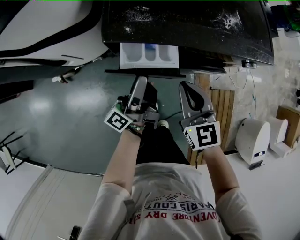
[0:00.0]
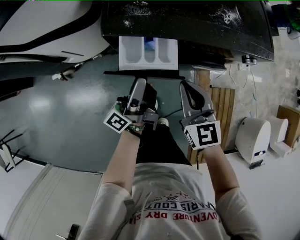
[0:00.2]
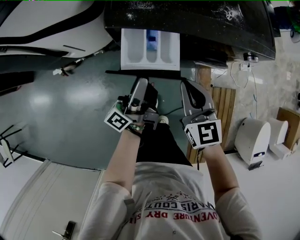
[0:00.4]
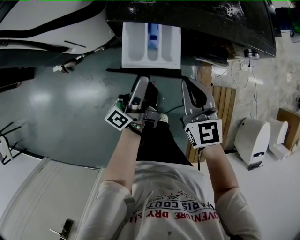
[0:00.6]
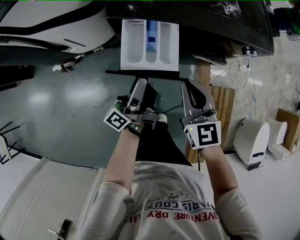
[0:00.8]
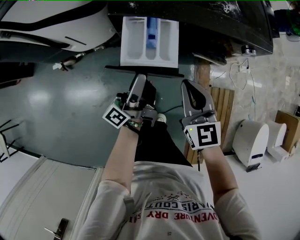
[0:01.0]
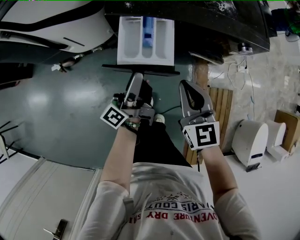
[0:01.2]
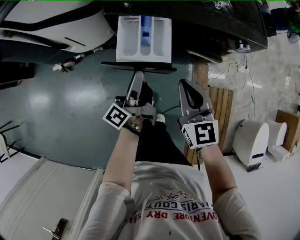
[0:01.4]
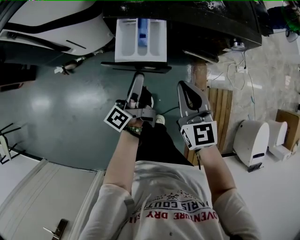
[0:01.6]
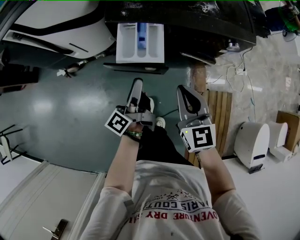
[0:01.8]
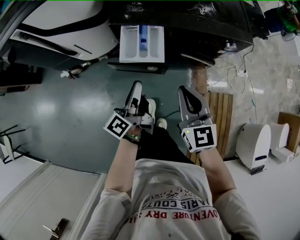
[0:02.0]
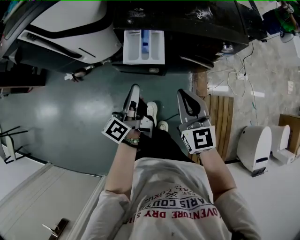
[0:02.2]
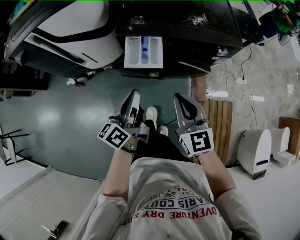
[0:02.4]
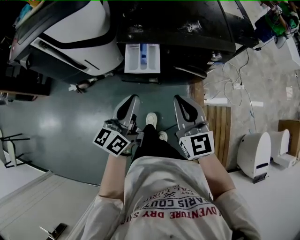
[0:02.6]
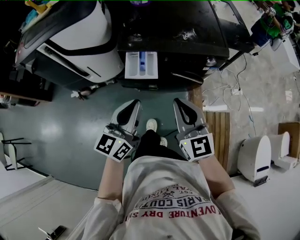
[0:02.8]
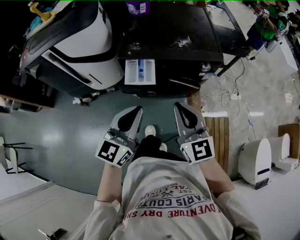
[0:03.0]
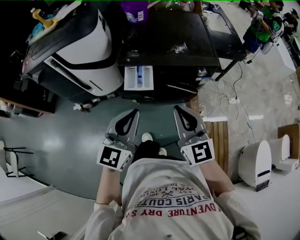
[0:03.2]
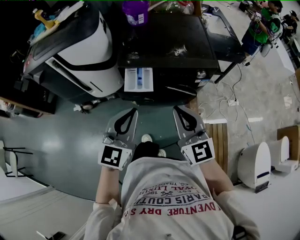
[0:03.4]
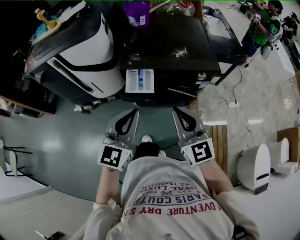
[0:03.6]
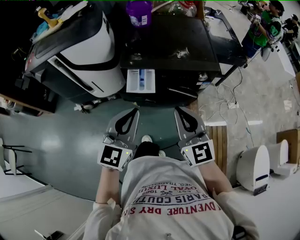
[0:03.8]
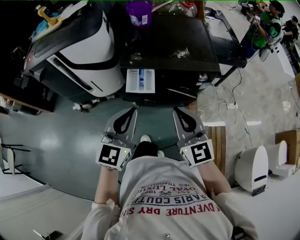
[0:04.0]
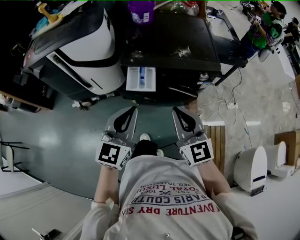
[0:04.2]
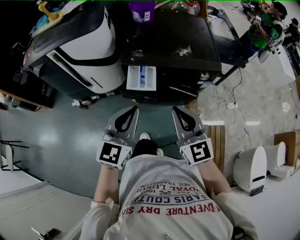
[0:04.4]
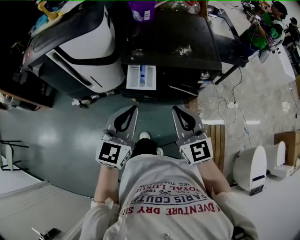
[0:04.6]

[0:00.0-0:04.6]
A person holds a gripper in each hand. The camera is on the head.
0:00.0 to 0:01.6: The grippers both shift backward by some 10 cm.
0:01.6 to 0:03.0: Both grippers travel together upward and backward, roughly 25 cm. The left gripper rotates around the line of its fingers by about 70 degrees, clockwise from behind, and closes its fingers.
0:03.0 to 0:04.6: The grippers stay close to where they were, moving slightly.

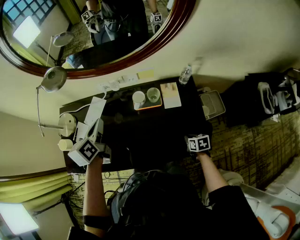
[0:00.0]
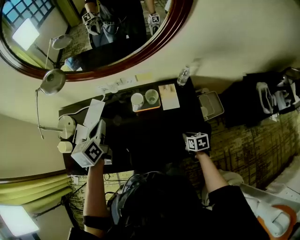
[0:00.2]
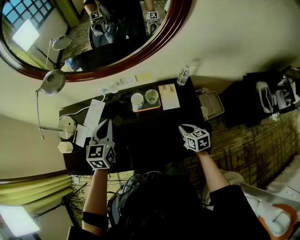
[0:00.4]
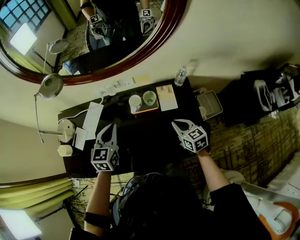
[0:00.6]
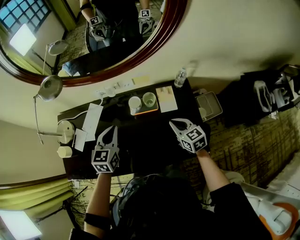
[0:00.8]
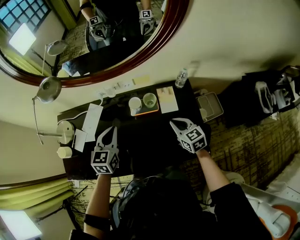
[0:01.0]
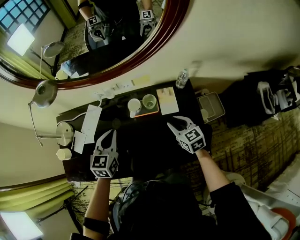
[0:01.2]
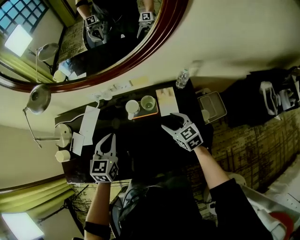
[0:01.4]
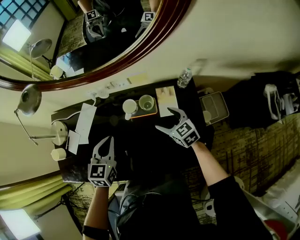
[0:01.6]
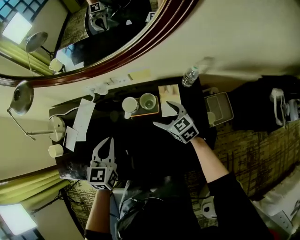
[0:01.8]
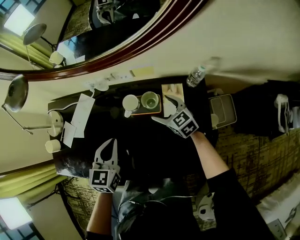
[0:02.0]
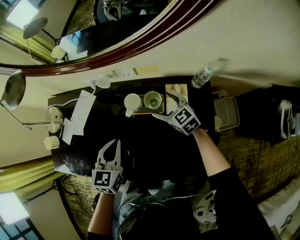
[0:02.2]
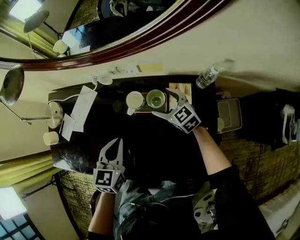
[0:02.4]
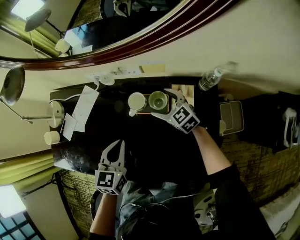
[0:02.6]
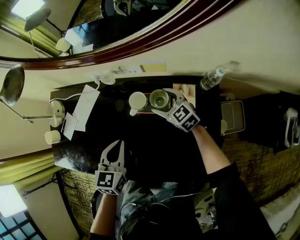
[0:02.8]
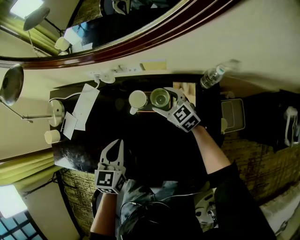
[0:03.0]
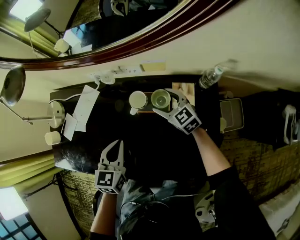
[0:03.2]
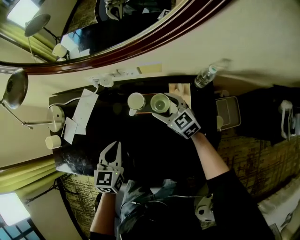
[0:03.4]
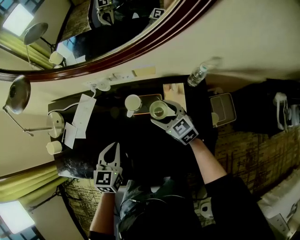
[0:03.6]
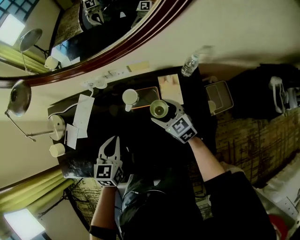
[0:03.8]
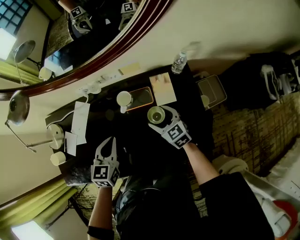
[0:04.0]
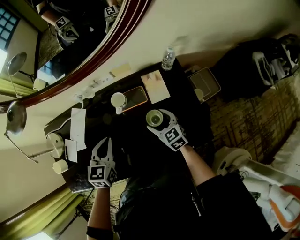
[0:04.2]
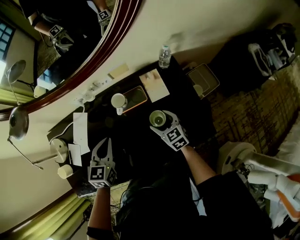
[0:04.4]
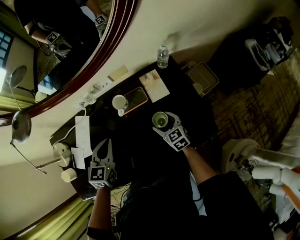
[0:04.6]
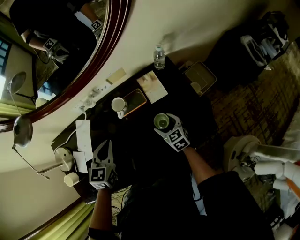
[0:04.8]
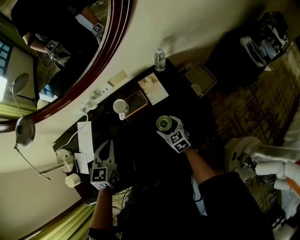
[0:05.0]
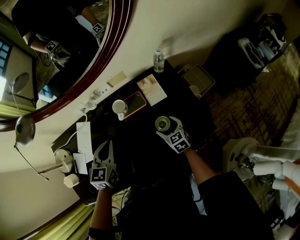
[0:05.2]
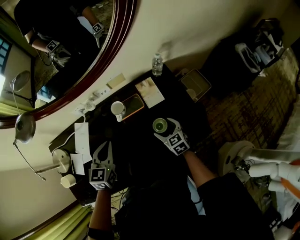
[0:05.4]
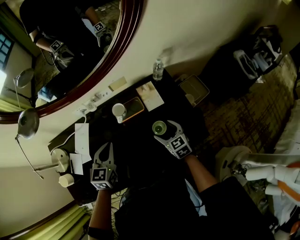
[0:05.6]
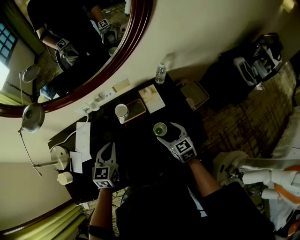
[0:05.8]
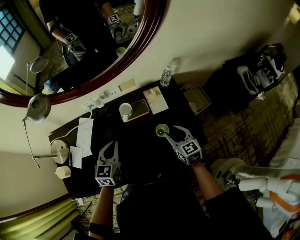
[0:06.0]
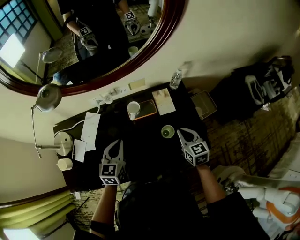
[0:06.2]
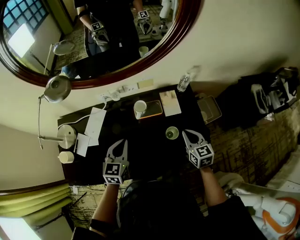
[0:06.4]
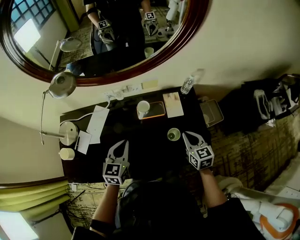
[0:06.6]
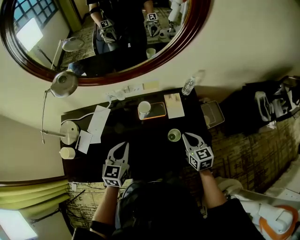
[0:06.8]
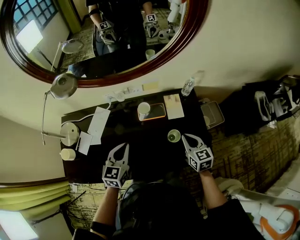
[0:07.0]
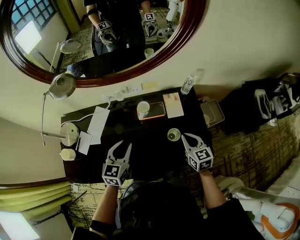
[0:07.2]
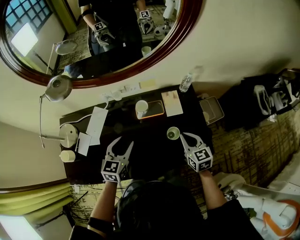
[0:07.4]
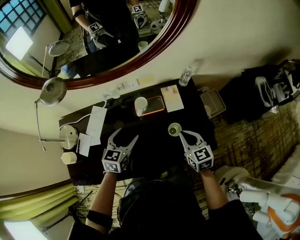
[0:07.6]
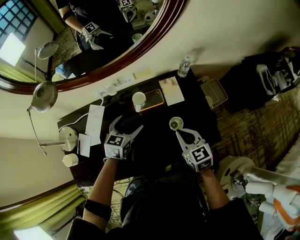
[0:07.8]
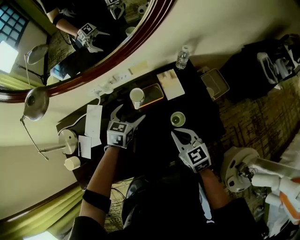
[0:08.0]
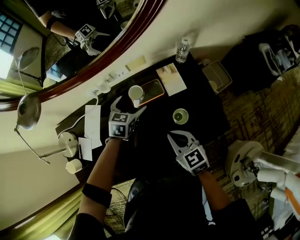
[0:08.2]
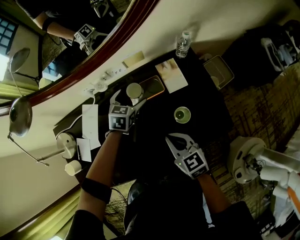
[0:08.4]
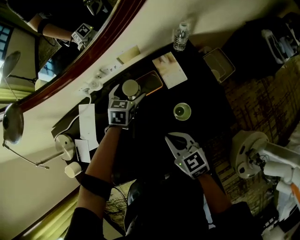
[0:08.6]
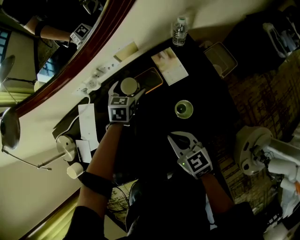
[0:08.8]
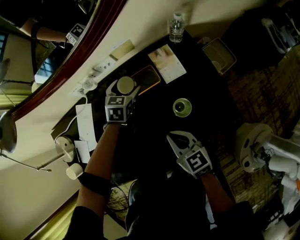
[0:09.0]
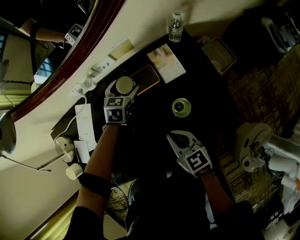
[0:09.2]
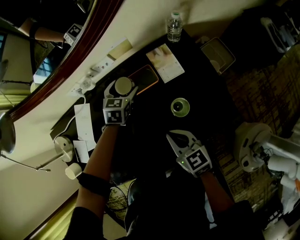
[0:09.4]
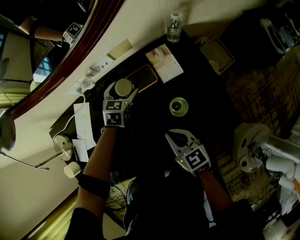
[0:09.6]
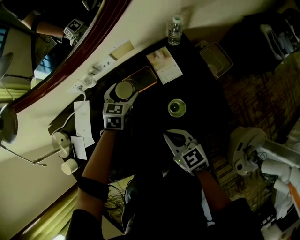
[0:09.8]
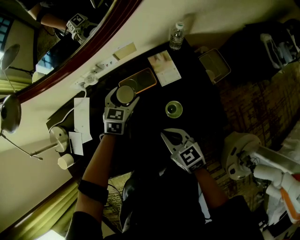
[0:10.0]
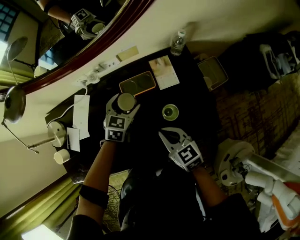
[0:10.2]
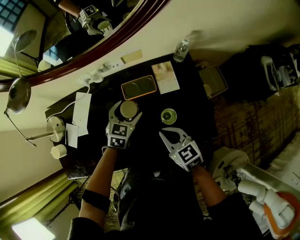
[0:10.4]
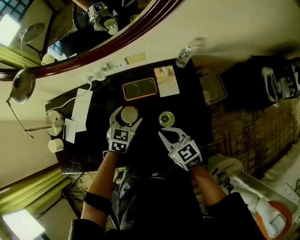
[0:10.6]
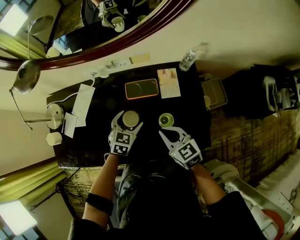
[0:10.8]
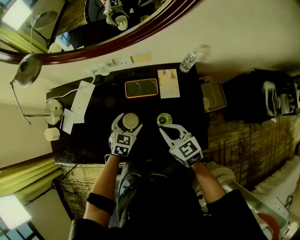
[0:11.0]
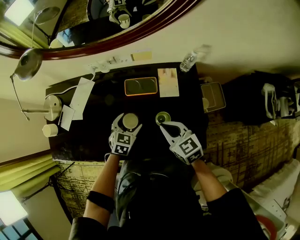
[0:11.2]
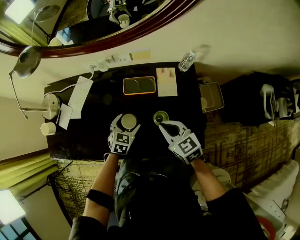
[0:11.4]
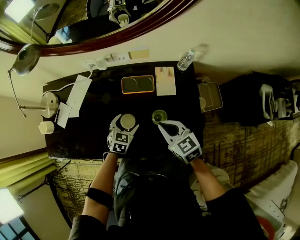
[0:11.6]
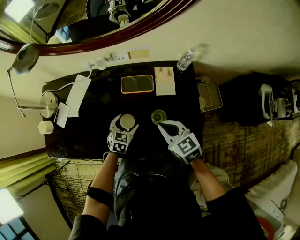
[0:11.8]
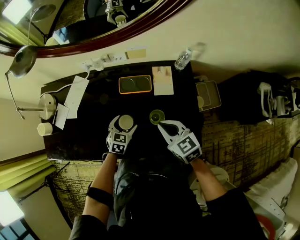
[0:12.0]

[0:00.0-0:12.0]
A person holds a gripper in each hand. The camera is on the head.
0:00.0 to 0:01.6: The right gripper moves forward and upward, about 20 cm, rotates some 50 degrees, and opens up. Meanwhile the left gripper is displaced to the right and downward by approximately 15 cm, and rotates about 40 degrees.
0:01.6 to 0:03.0: The right gripper is displaced forward and downward by approximately 15 cm; the left gripper travels downward by some 10 cm.
0:03.0 to 0:04.4: The right gripper ends up about 20 cm from where it was, and turns by roughly 40 degrees. Meanwhile the left gripper ends up some 5 cm from where it was, and swivels some 20 degrees.
0:04.4 to 0:06.0: The right gripper goes about 10 cm upward and backward, and closes.
0:06.0 to 0:07.6: The left gripper opens up. The right gripper closes.
0:07.6 to 0:09.0: The left gripper goes approximately 25 cm forward and downward, and turns by roughly 20 degrees. Meanwhile the right gripper heads to the left and downward, covering roughly 15 cm.
0:09.0 to 0:10.4: The right gripper travels upward by some 5 cm. The left gripper goes some 15 cm backward and upward.
0:10.4 to 0:12.0: The right gripper shifts approximately 5 cm to the right; the left gripper shifts about 15 cm downward and backward.

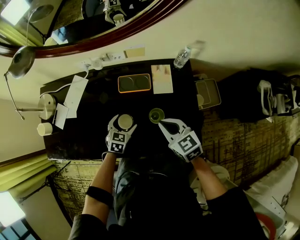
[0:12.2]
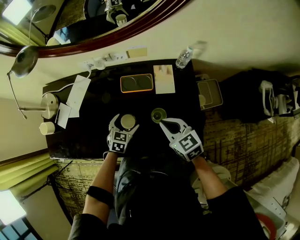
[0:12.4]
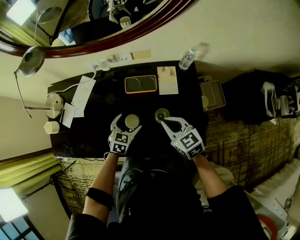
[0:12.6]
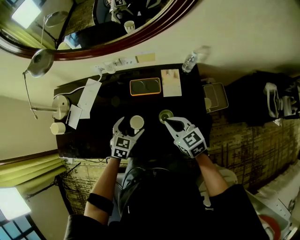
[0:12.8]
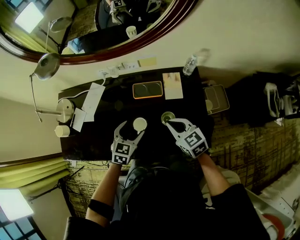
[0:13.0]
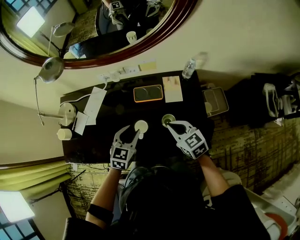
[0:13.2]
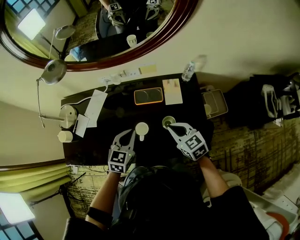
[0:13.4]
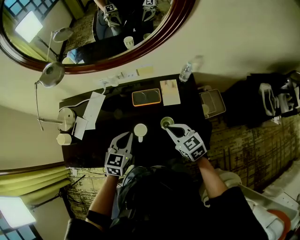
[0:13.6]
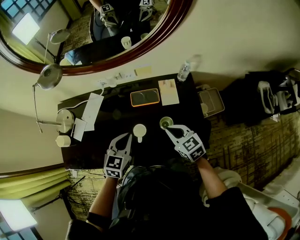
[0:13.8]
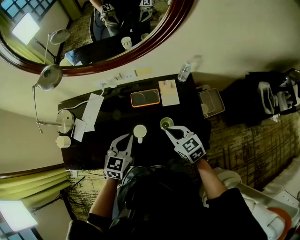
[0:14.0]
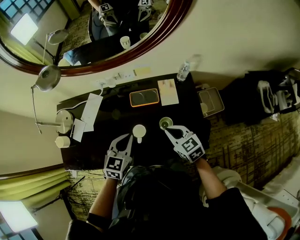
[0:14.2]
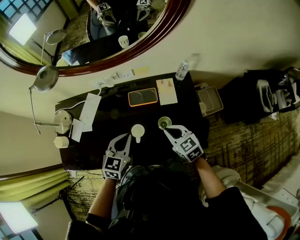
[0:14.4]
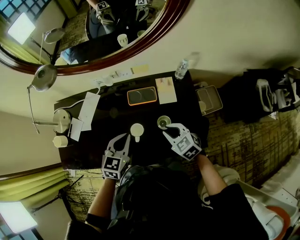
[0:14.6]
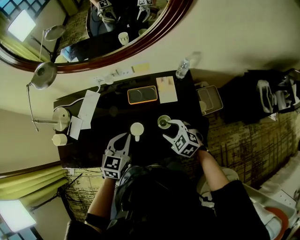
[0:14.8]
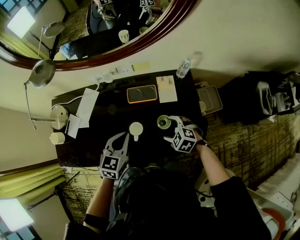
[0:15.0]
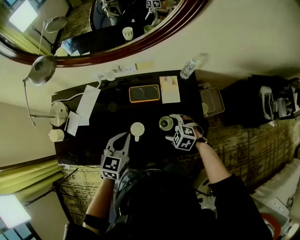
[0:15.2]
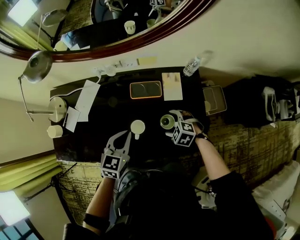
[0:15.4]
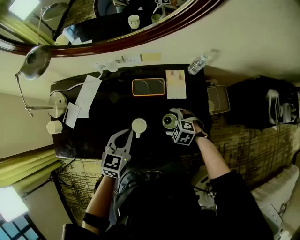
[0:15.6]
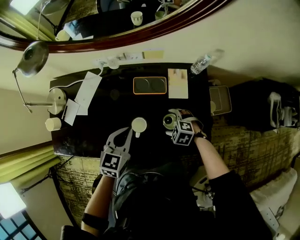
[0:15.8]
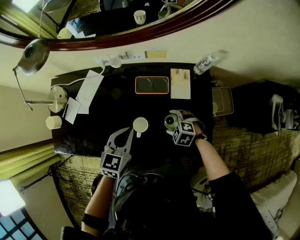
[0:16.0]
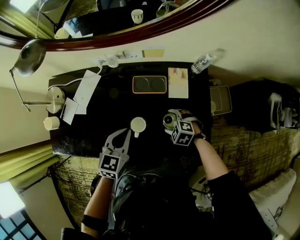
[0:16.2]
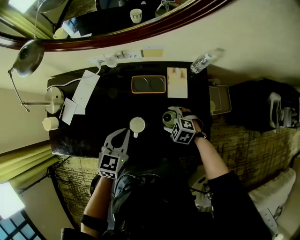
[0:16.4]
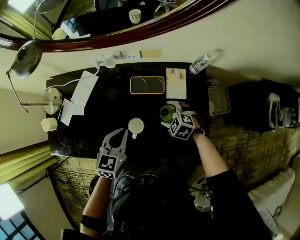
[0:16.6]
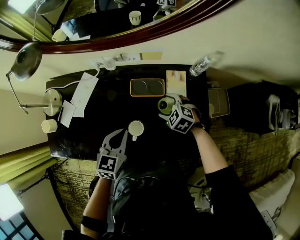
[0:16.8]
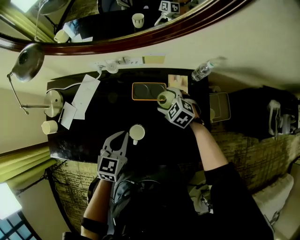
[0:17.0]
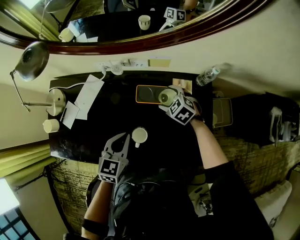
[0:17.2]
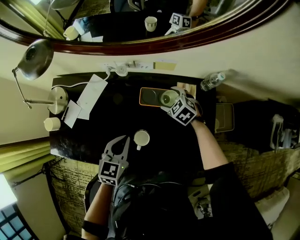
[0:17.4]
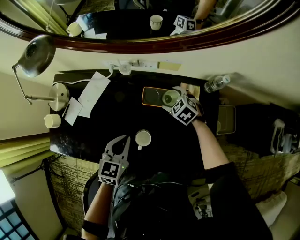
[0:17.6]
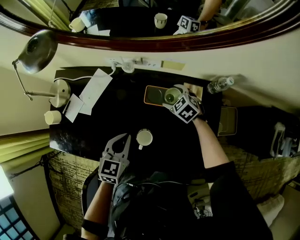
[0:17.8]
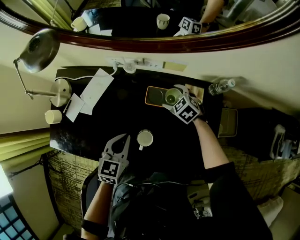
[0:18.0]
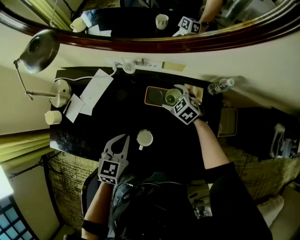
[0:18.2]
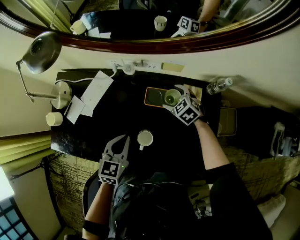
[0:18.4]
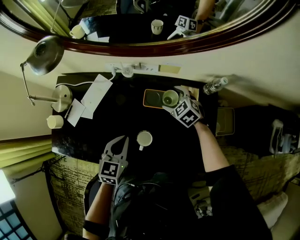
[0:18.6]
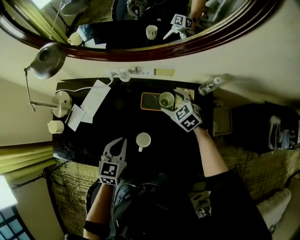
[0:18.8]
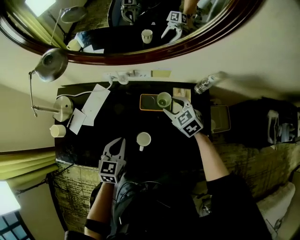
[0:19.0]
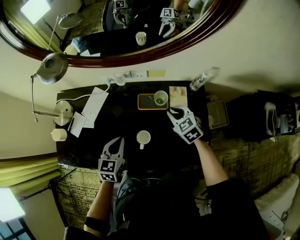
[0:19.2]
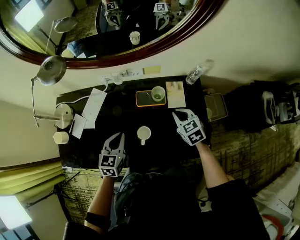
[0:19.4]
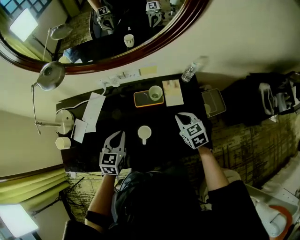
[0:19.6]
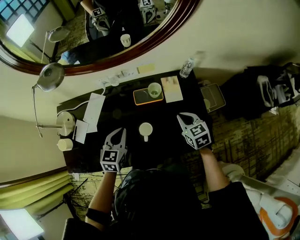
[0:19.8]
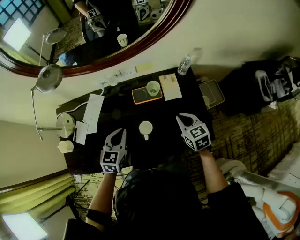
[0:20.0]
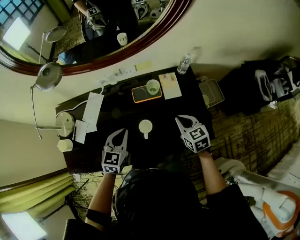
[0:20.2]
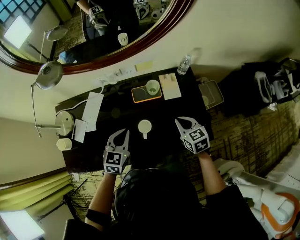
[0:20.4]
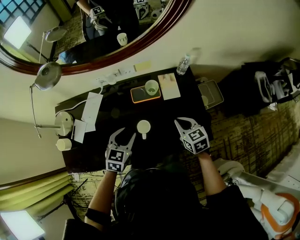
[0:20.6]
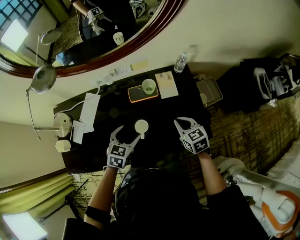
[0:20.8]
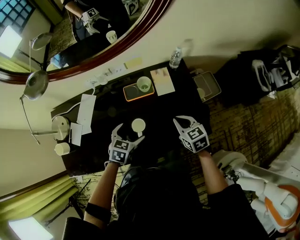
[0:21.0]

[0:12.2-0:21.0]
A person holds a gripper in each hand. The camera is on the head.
0:12.2 to 0:13.6: The left gripper is displaced upward by approximately 20 cm, and closes its fingers.
0:13.6 to 0:15.2: The right gripper heads downward, covering approximately 10 cm, points its fingers about 30 degrees further downward, and opens.
0:15.2 to 0:16.6: The right gripper is displaced forward by approximately 5 cm.
0:16.6 to 0:18.0: The right gripper heads forward, covering roughly 15 cm.
0:18.0 to 0:19.6: The right gripper goes approximately 20 cm backward and upward, swivels approximately 40 degrees, and closes its fingers.
0:19.6 to 0:21.0: The left gripper goes some 10 cm to the right and downward, swivels about 30 degrees, and opens up, while the right gripper travels backward by some 5 cm.
